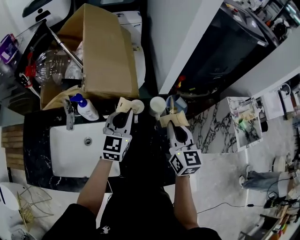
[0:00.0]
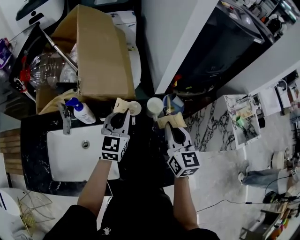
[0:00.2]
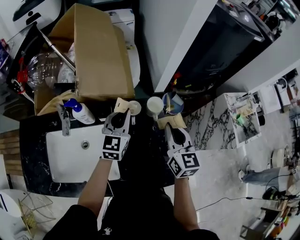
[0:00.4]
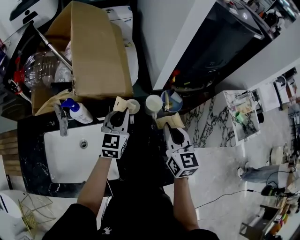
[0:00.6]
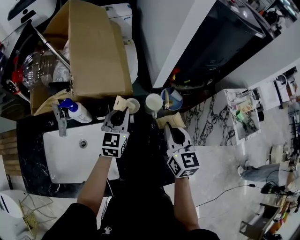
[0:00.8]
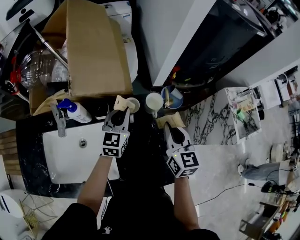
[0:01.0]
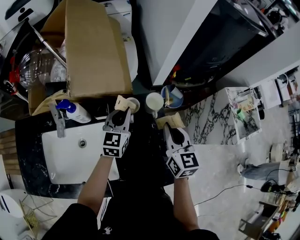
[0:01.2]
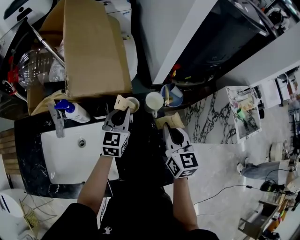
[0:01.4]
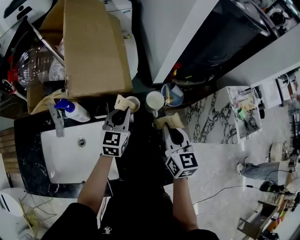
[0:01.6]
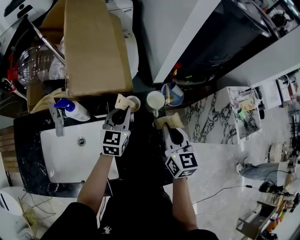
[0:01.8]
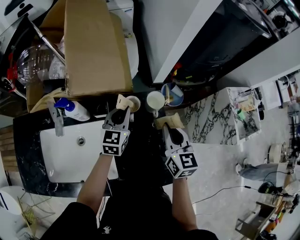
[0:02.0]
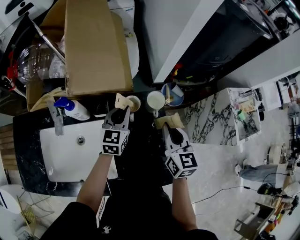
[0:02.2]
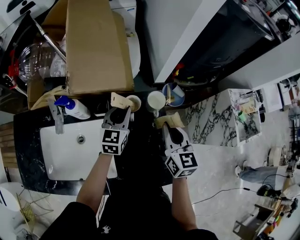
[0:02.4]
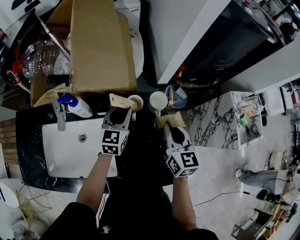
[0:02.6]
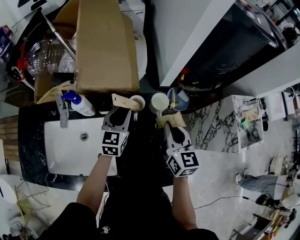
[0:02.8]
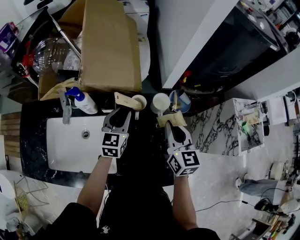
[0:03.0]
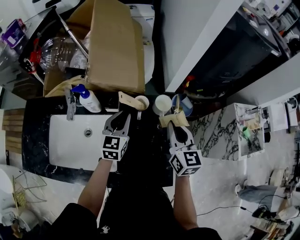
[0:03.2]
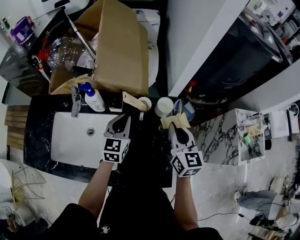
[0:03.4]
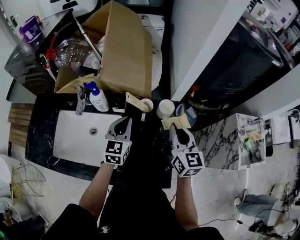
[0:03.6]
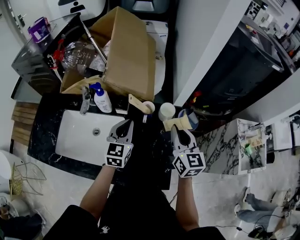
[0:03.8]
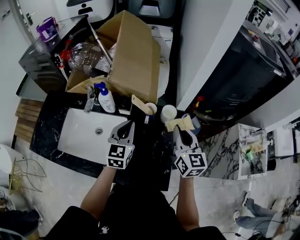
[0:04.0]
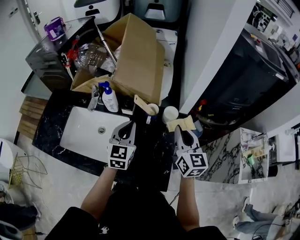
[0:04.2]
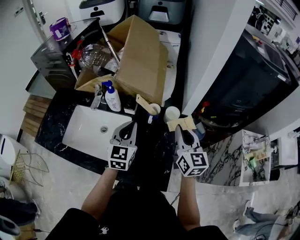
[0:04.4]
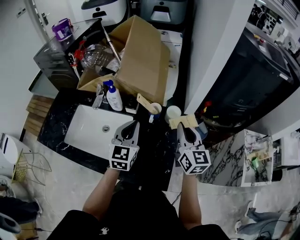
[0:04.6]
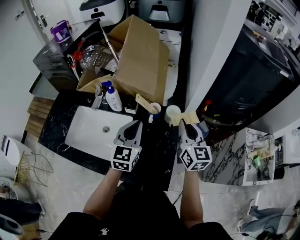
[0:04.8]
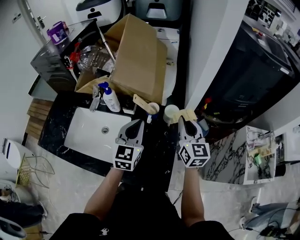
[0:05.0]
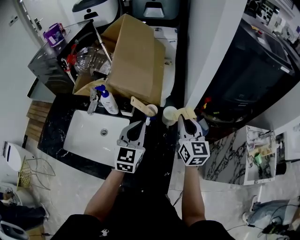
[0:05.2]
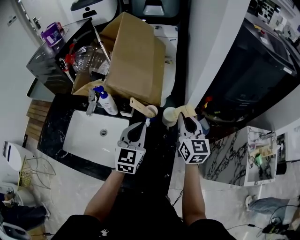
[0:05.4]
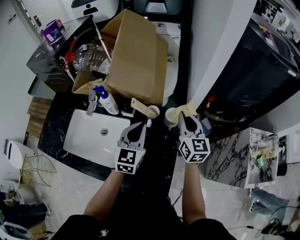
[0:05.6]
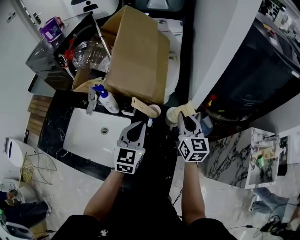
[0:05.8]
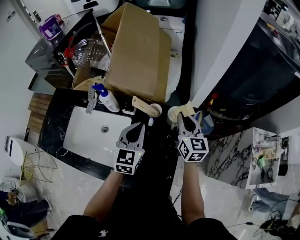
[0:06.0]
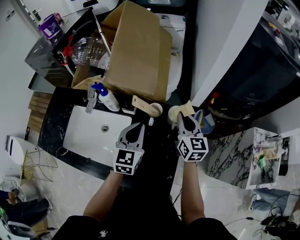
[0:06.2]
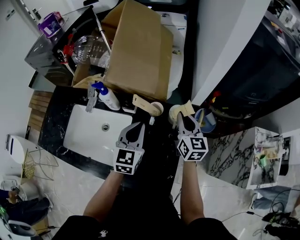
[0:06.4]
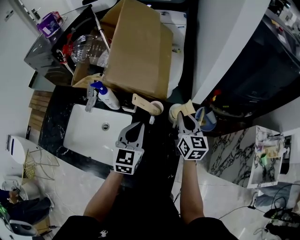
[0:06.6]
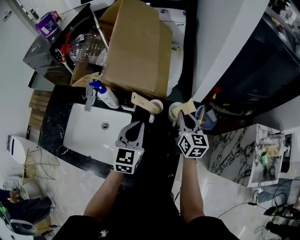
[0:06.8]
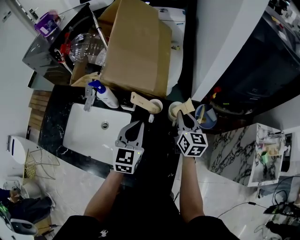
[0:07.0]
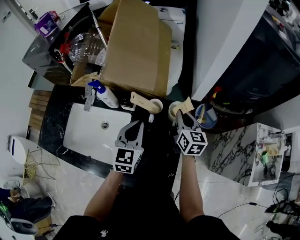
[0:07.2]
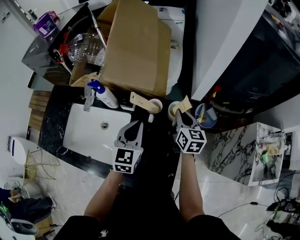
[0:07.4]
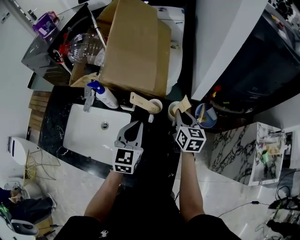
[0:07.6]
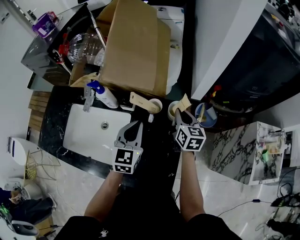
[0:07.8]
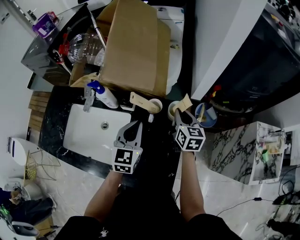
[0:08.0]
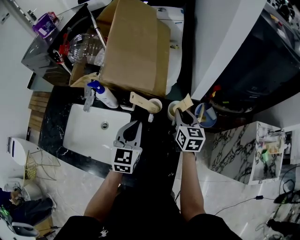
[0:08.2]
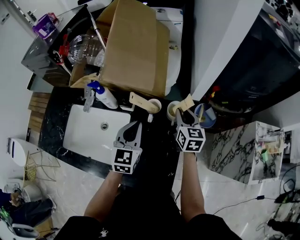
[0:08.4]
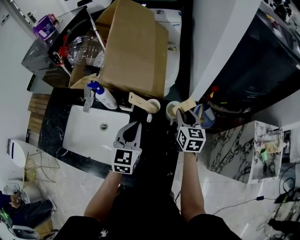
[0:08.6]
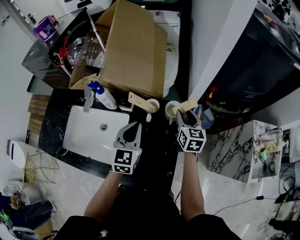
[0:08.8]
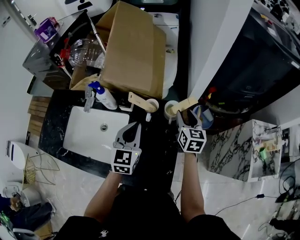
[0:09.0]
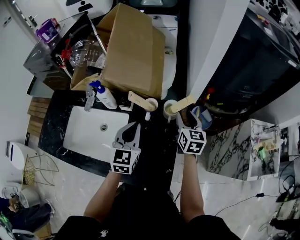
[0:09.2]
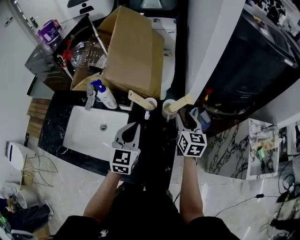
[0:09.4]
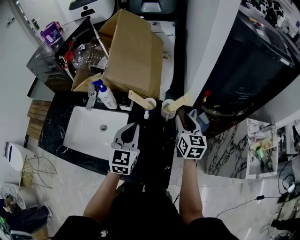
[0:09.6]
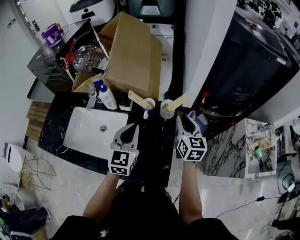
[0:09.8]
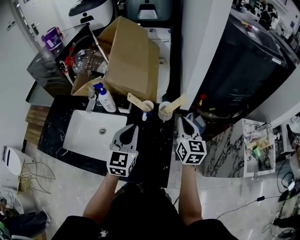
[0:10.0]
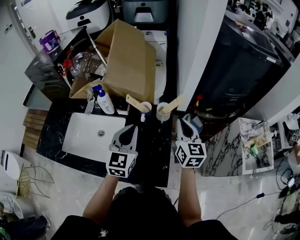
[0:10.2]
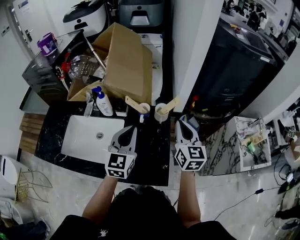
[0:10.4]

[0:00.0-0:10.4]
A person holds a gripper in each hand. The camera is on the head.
0:00.0 to 0:01.4: The left gripper heads downward, covering approximately 10 cm.
0:01.4 to 0:03.0: The left gripper opens its fingers.
0:03.0 to 0:04.4: The right gripper goes approximately 5 cm upward; the left gripper travels backward and upward by approximately 15 cm, and closes its fingers.
0:04.4 to 0:06.0: The left gripper shifts by about 5 cm. The right gripper heads forward and downward, covering about 15 cm.
0:06.0 to 0:07.4: The right gripper is displaced downward by some 5 cm.
0:07.4 to 0:09.0: The right gripper opens its fingers.
0:09.0 to 0:10.4: The left gripper is displaced upward and backward by some 10 cm, while the right gripper travels backward and upward by about 20 cm, and closes.

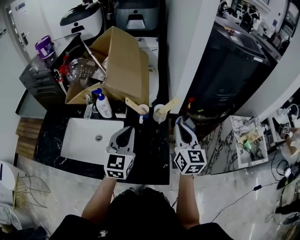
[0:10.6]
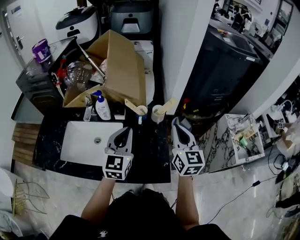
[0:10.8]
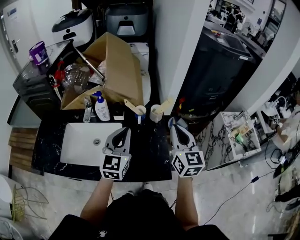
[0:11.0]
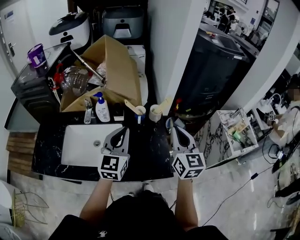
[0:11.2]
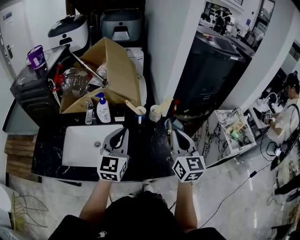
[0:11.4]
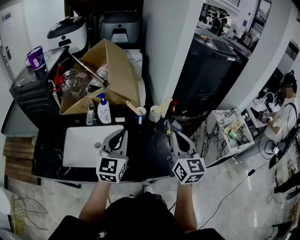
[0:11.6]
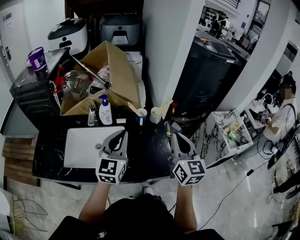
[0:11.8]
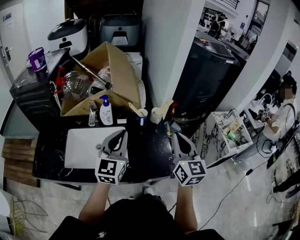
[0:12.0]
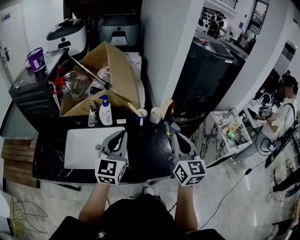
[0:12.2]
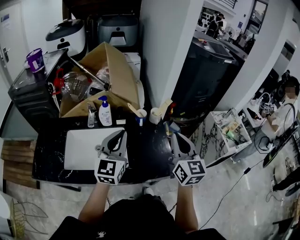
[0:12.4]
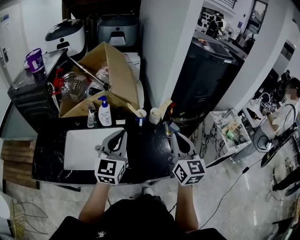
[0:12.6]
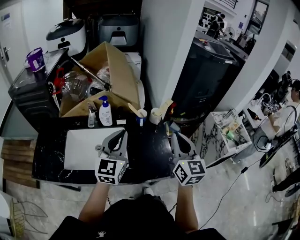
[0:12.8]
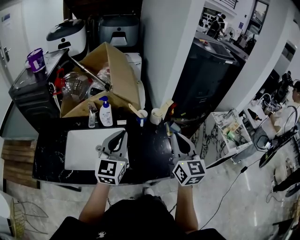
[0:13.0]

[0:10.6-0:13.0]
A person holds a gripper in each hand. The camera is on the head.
0:10.6 to 0:11.8: The left gripper travels backward, to the left and upward by approximately 15 cm. The right gripper moves backward, upward and to the left, about 20 cm.
0:11.8 to 0:13.0: Both grippers stay put.

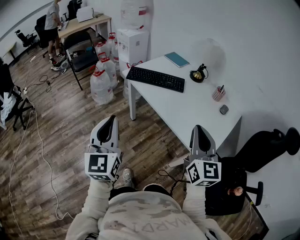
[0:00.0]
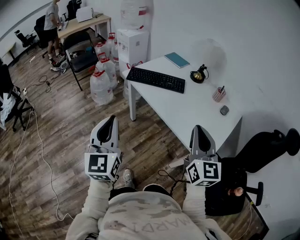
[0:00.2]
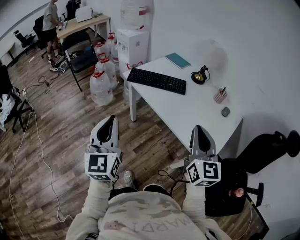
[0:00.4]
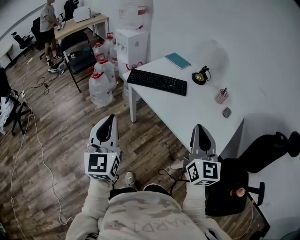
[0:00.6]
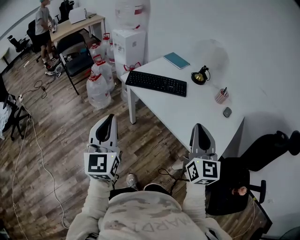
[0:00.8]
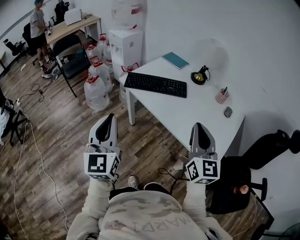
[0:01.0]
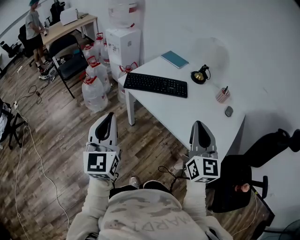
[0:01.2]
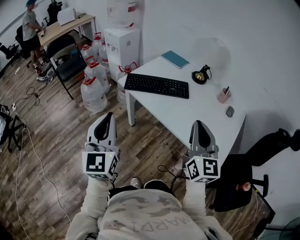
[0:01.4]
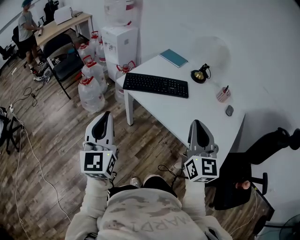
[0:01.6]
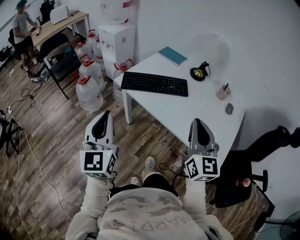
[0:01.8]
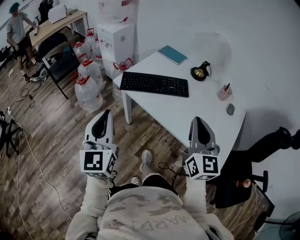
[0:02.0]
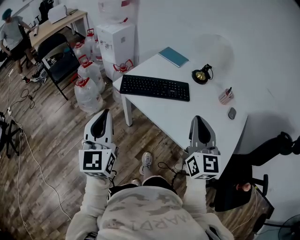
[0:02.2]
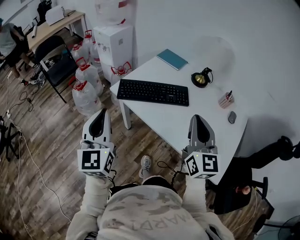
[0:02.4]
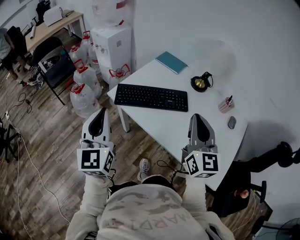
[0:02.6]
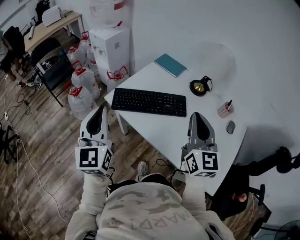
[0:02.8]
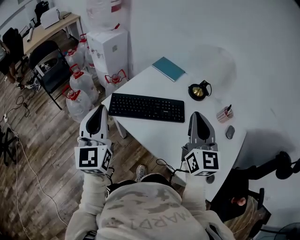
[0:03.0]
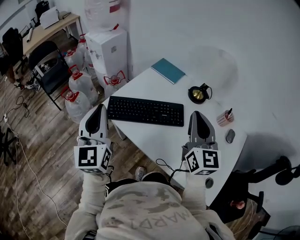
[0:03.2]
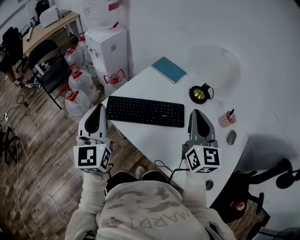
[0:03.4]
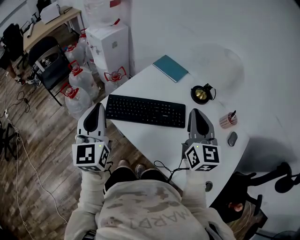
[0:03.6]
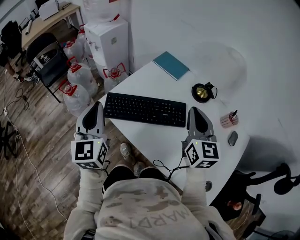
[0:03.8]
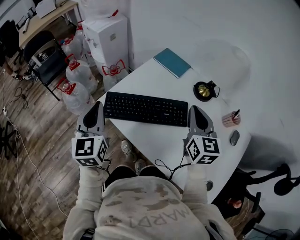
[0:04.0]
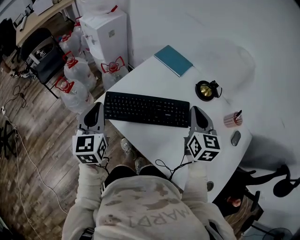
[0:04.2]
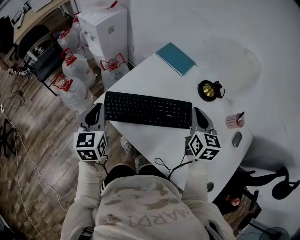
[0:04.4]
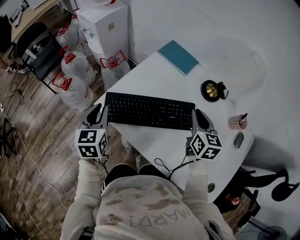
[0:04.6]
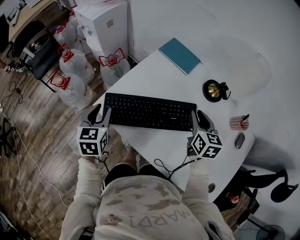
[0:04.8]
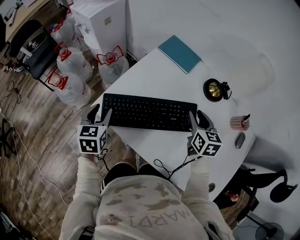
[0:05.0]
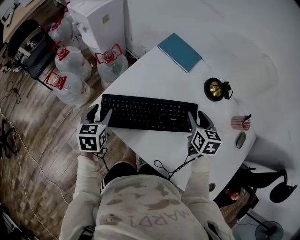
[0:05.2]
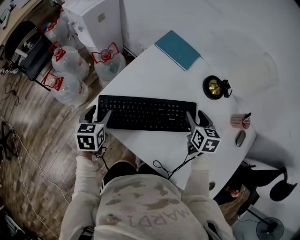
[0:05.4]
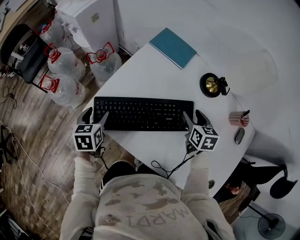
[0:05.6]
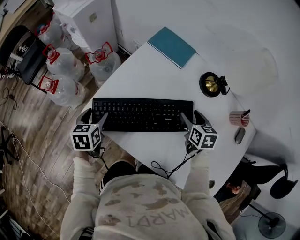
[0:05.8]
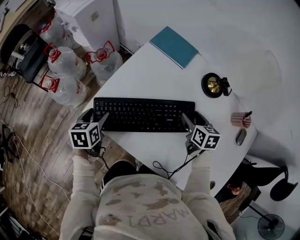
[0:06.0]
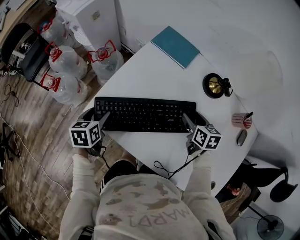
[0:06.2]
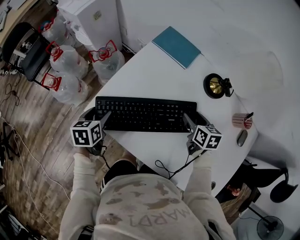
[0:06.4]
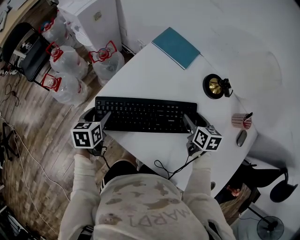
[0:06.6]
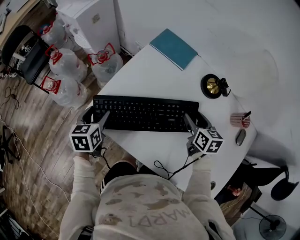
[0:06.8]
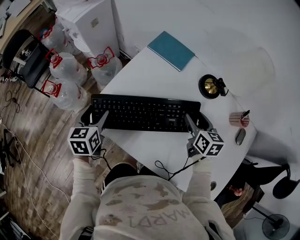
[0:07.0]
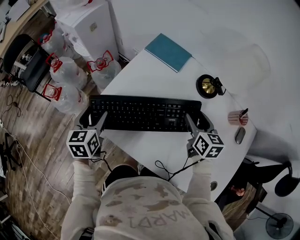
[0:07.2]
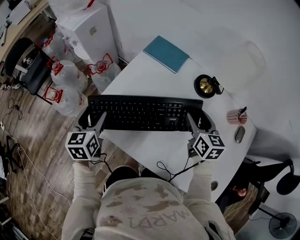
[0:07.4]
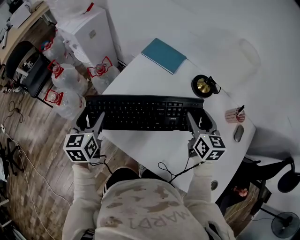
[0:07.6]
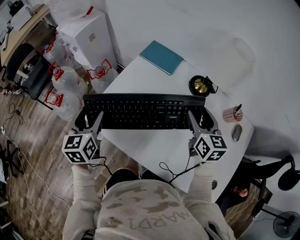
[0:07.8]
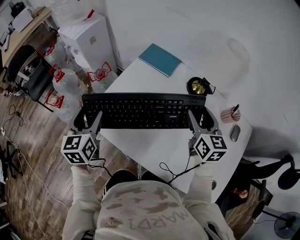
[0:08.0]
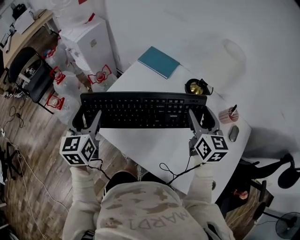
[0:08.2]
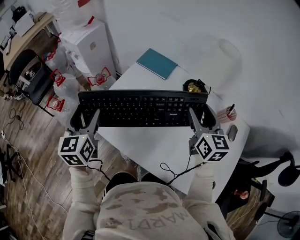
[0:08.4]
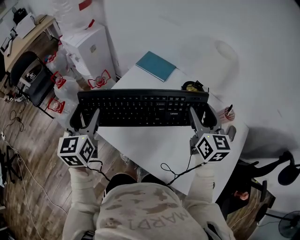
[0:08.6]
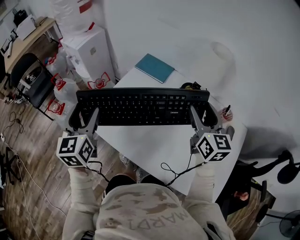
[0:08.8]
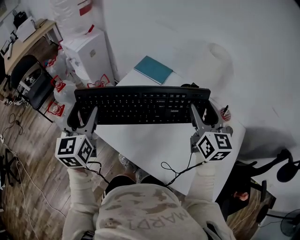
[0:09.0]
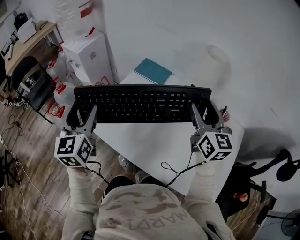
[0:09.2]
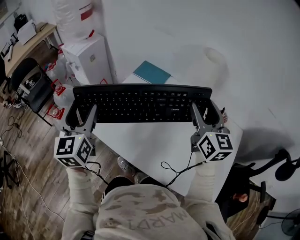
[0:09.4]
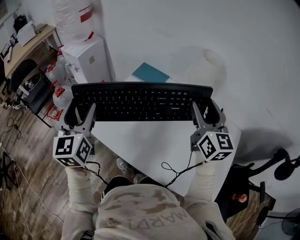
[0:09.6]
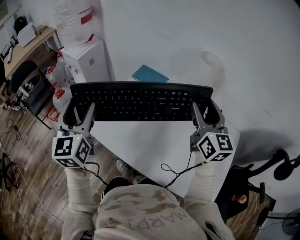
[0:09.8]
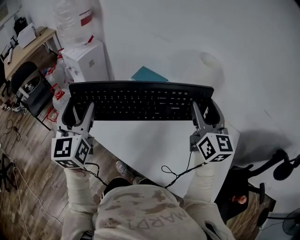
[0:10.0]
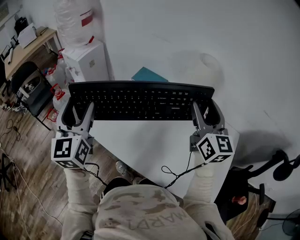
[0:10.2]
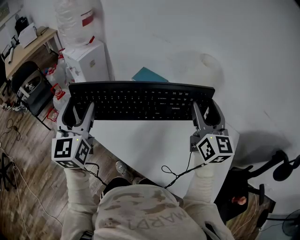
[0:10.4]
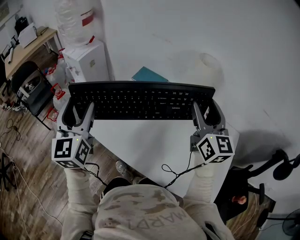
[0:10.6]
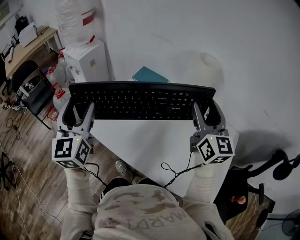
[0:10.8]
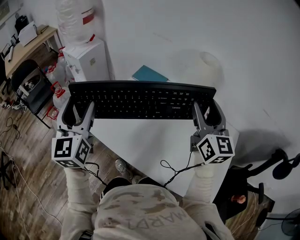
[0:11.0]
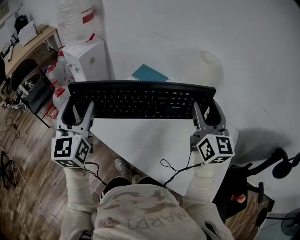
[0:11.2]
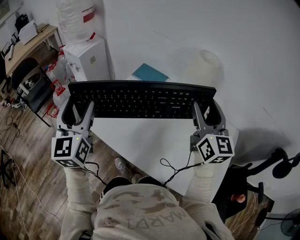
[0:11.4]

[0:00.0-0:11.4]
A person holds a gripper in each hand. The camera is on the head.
0:00.0 to 0:01.4: The grippers both shift forward and to the left by about 15 cm.
0:01.4 to 0:02.8: Both grippers travel together forward, some 20 cm.
0:02.8 to 0:04.2: The two grippers go approximately 20 cm forward and downward. The right gripper turns by some 20 degrees.
0:04.2 to 0:05.6: The left gripper goes about 20 cm downward and forward, tips its fingers downward by approximately 30 degrees, and opens; the right gripper travels downward by some 20 cm, changes its angle by approximately 30 degrees, and opens its fingers.
0:05.6 to 0:07.2: Both grippers move upward, about 5 cm.
0:07.2 to 0:08.6: The two grippers go about 15 cm upward. The right gripper swivels some 20 degrees; the left gripper turns by approximately 20 degrees.
0:08.6 to 0:10.0: Both grippers move upward, some 10 cm.
0:10.0 to 0:11.4: Both grippers stay about where they are.
